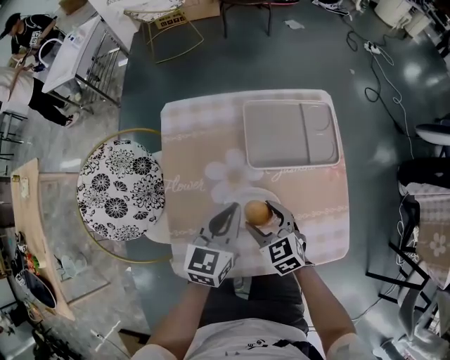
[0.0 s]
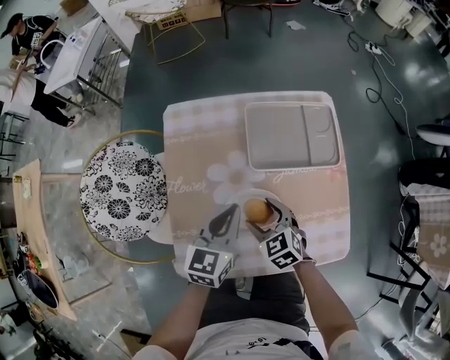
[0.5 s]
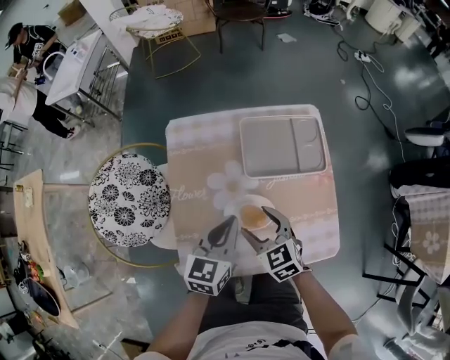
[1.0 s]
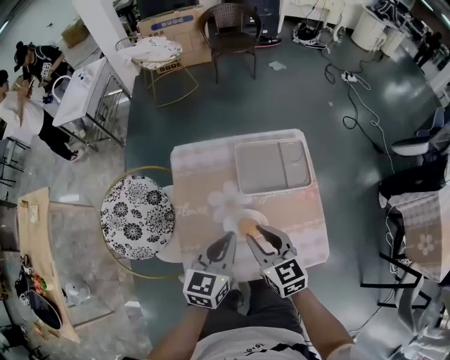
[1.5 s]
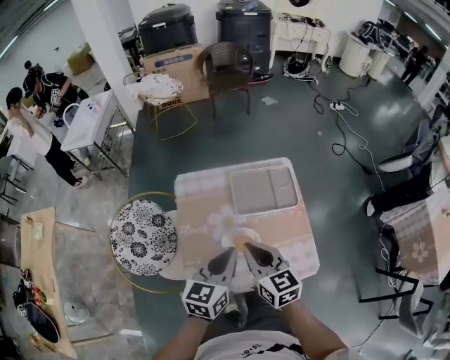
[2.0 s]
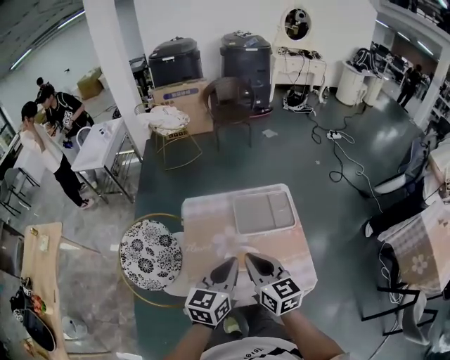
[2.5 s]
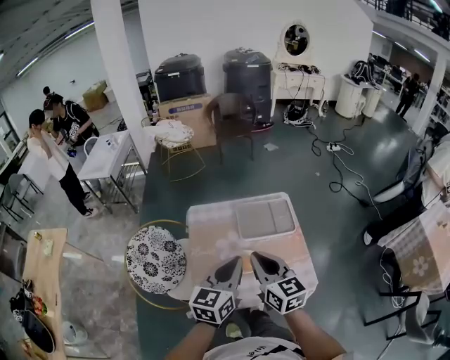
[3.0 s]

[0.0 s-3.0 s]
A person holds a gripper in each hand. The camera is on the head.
0.0 to 1.5 s: The right gripper is displaced upward by some 20 cm, changes its angle by some 20 degrees, and closes; the left gripper travels upward by about 10 cm.
1.5 to 3.0 s: Both grippers move upward, roughly 15 cm. The right gripper closes up.

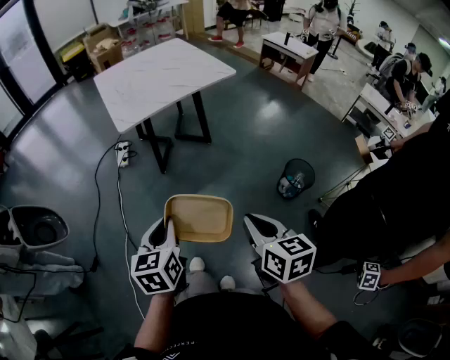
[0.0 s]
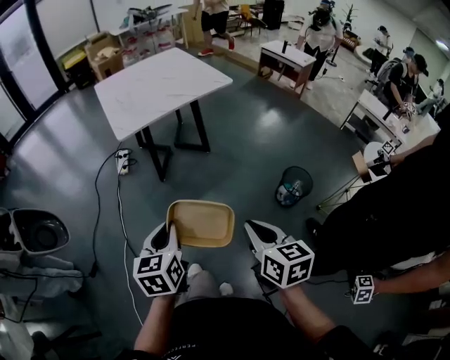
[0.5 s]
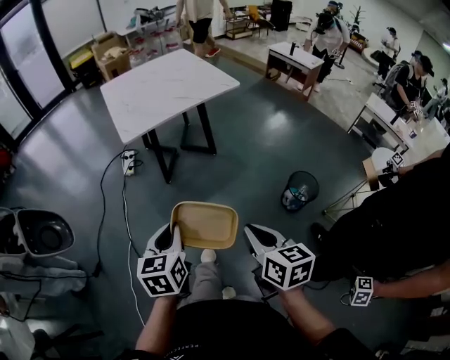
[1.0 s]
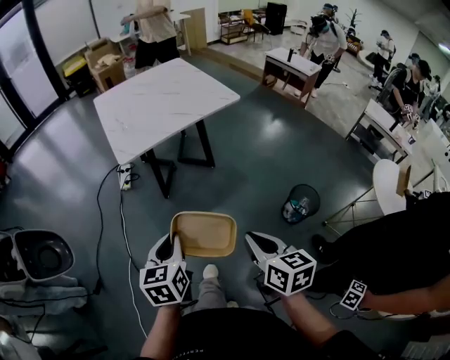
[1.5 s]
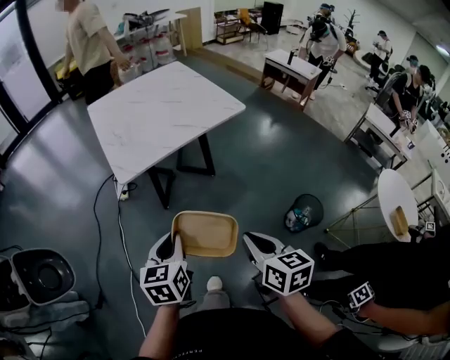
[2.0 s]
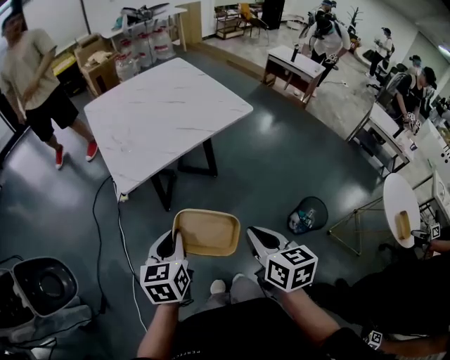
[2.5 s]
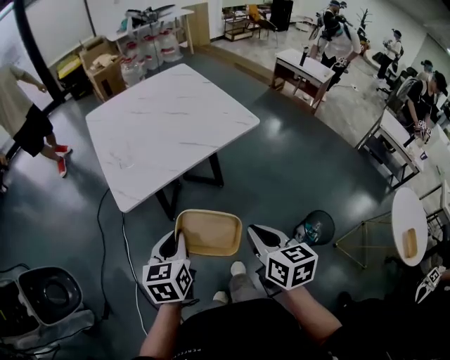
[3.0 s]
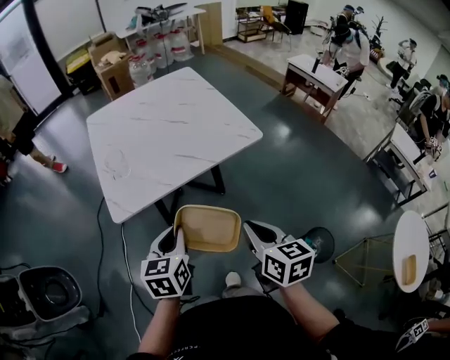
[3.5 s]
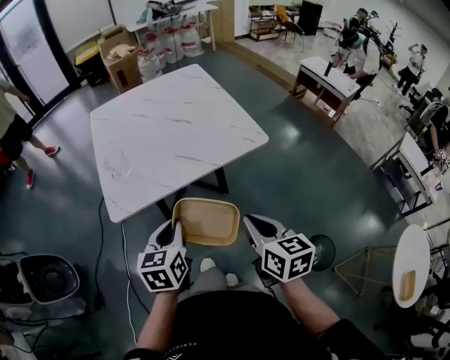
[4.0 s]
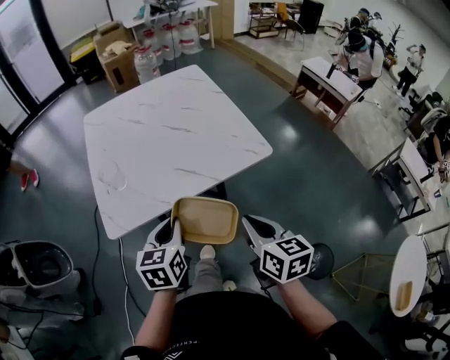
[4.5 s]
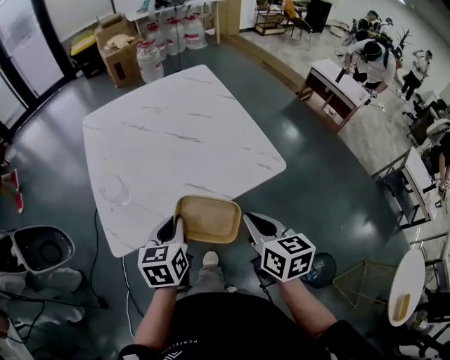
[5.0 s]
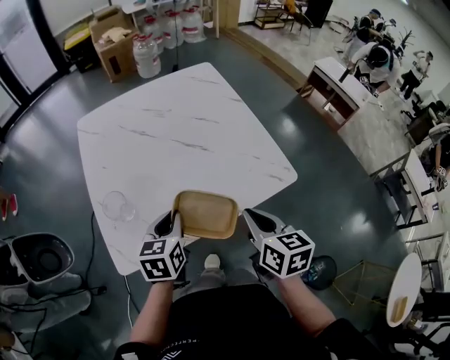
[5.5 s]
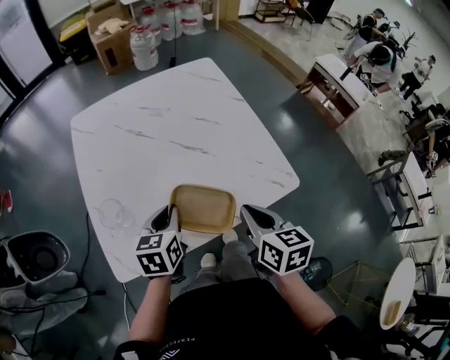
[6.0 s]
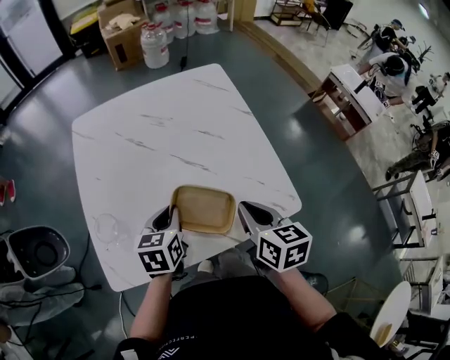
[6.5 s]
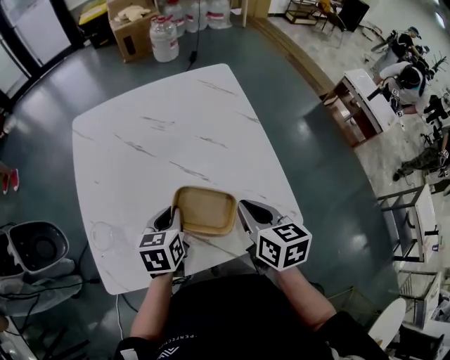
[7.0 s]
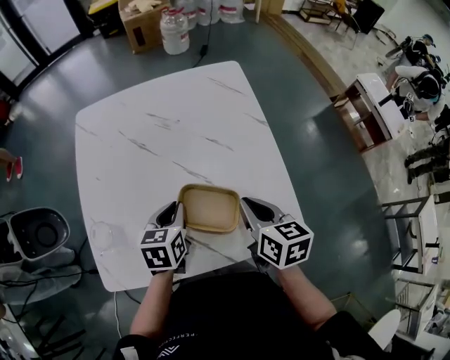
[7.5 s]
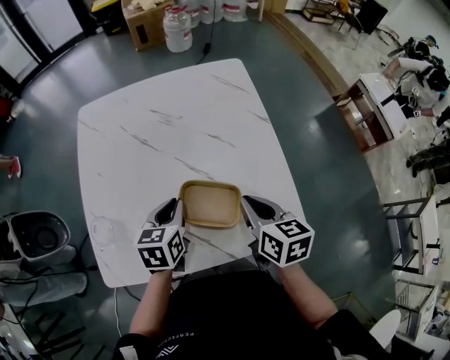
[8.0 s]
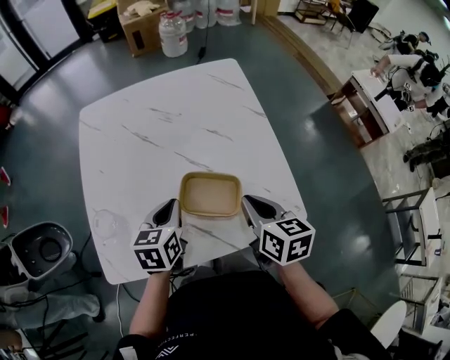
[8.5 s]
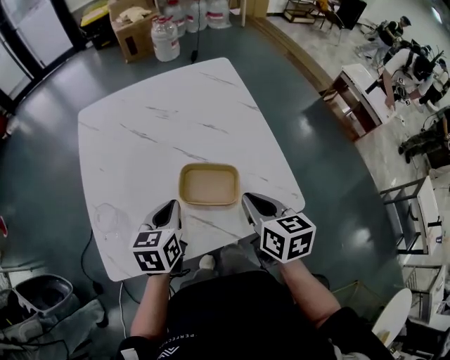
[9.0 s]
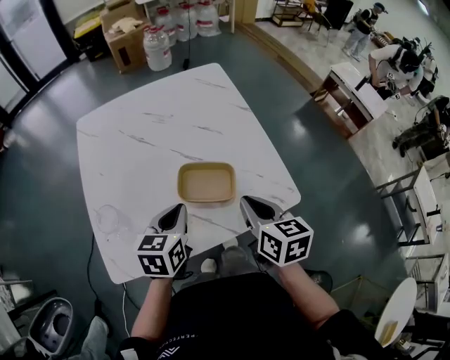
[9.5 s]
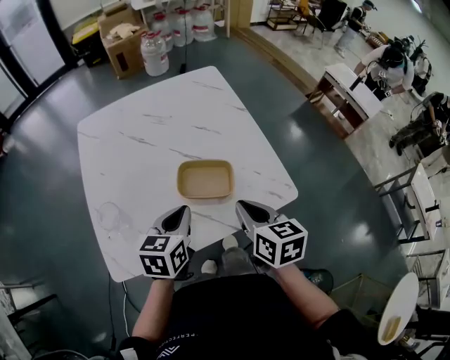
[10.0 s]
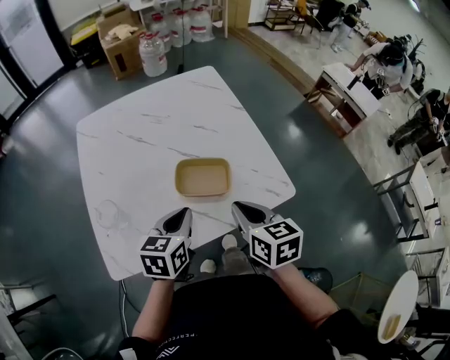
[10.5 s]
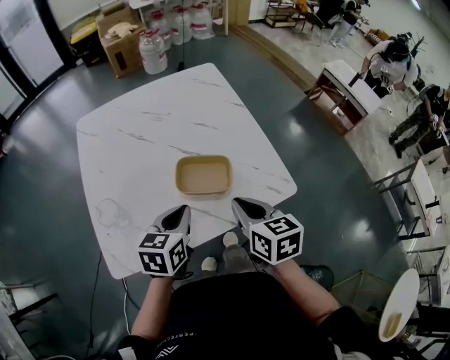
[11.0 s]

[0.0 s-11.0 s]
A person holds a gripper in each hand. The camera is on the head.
0.0 to 2.0 s: The grippers both shift forward by roughly 20 cm.
2.0 to 3.5 s: The two grippers go some 25 cm forward.
3.5 to 5.5 s: The two grippers go approximately 30 cm forward.
5.5 to 7.5 s: The two grippers go roughly 20 cm forward.
7.5 to 9.0 s: The two grippers go roughly 5 cm backward.
9.0 to 11.0 s: The two grippers go roughly 5 cm backward.

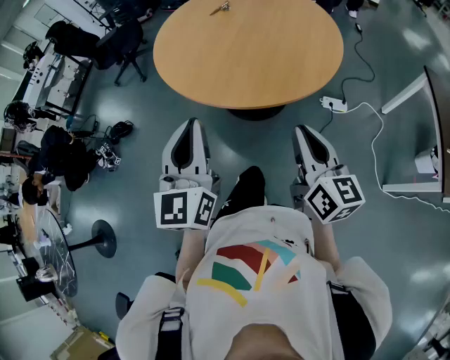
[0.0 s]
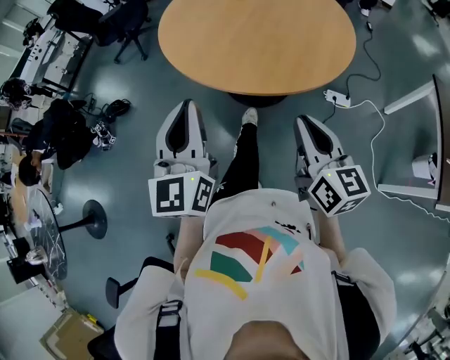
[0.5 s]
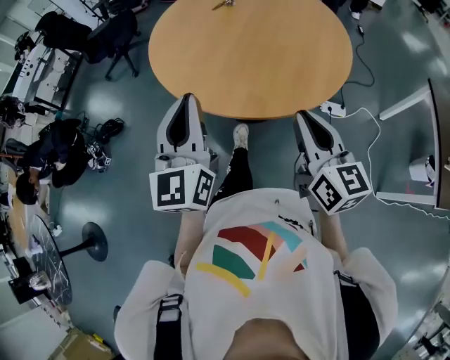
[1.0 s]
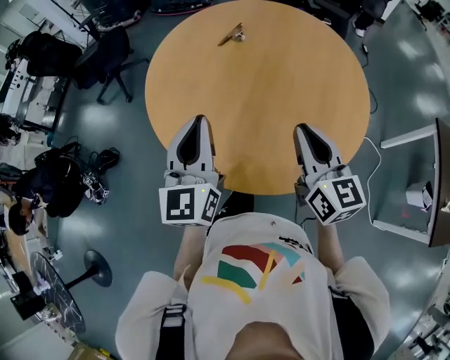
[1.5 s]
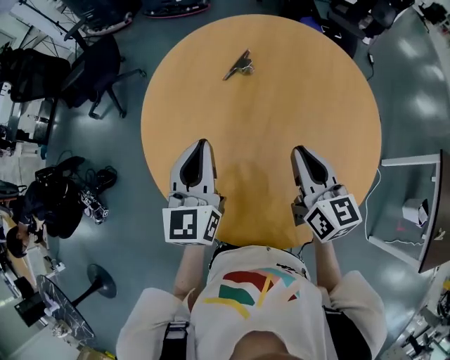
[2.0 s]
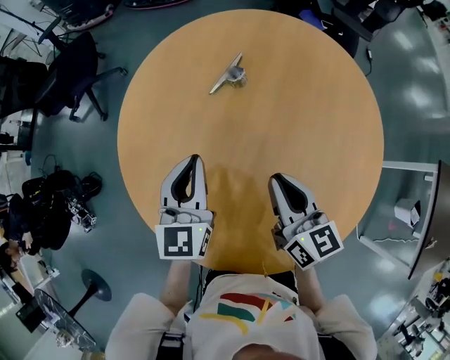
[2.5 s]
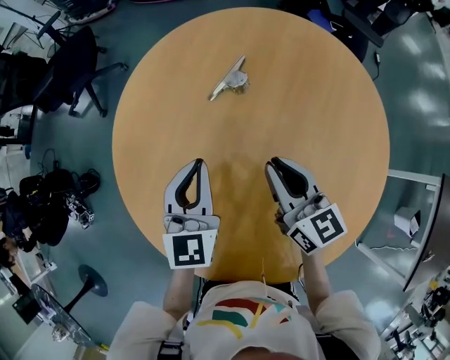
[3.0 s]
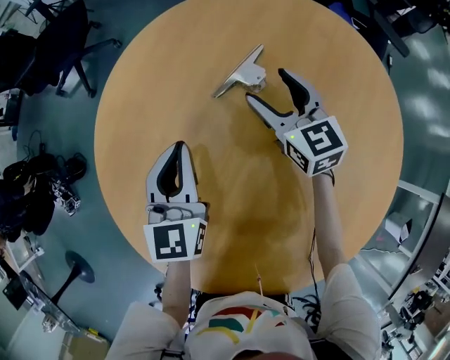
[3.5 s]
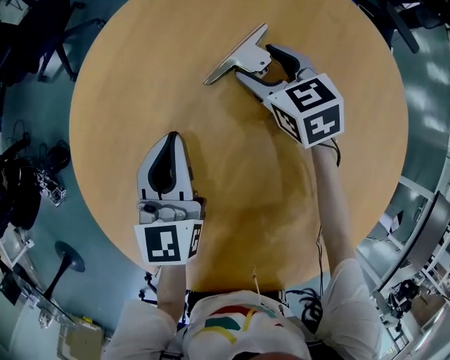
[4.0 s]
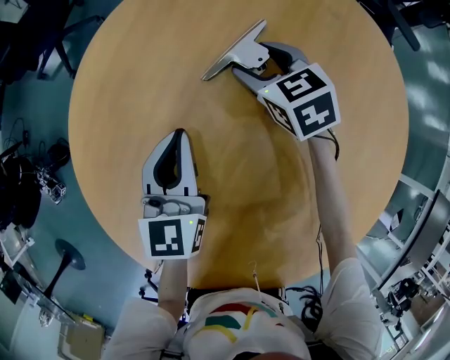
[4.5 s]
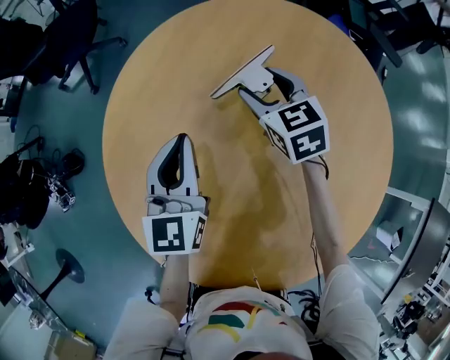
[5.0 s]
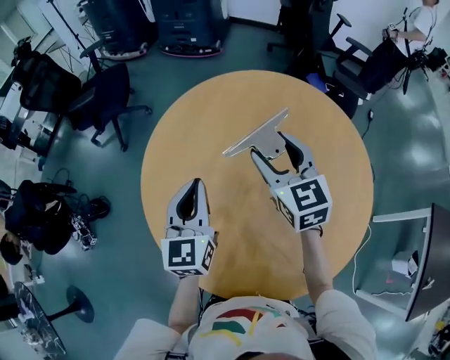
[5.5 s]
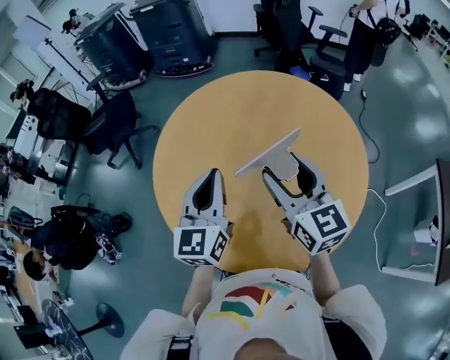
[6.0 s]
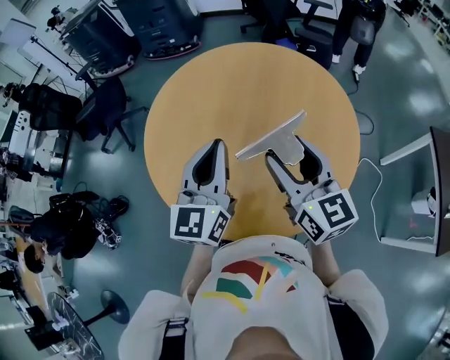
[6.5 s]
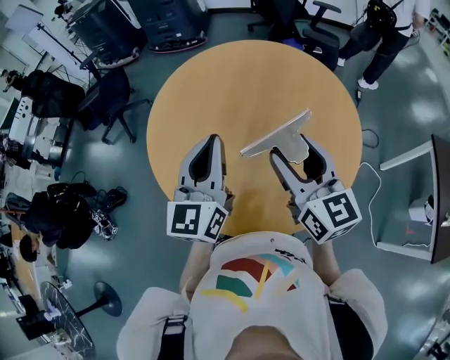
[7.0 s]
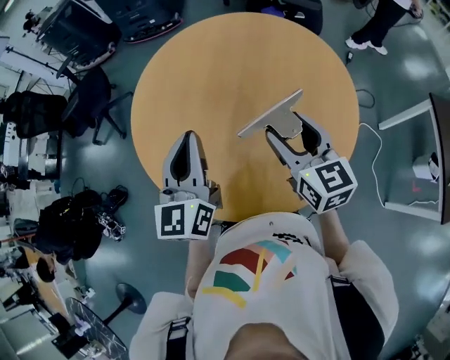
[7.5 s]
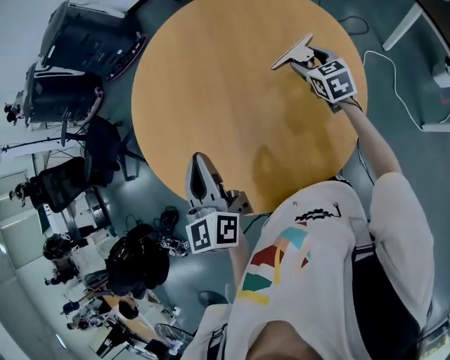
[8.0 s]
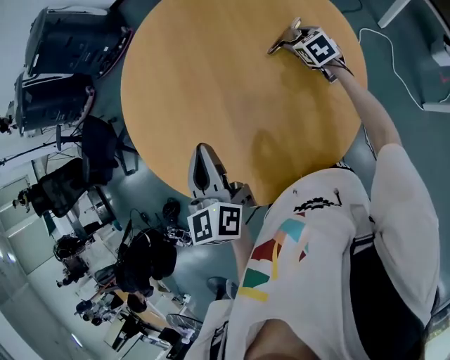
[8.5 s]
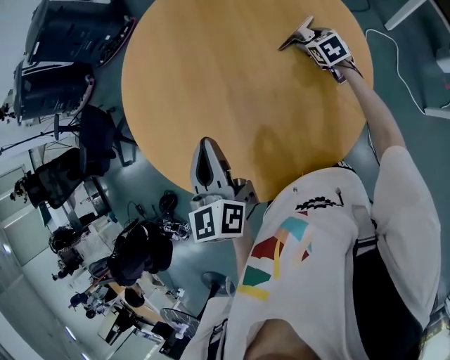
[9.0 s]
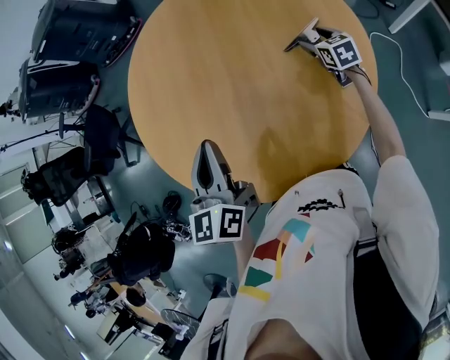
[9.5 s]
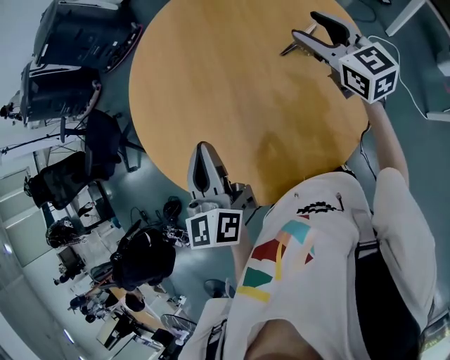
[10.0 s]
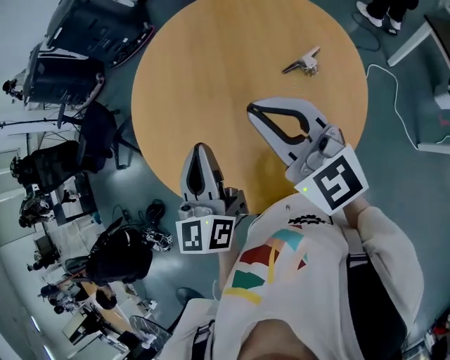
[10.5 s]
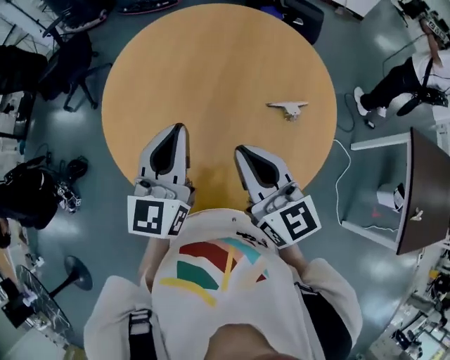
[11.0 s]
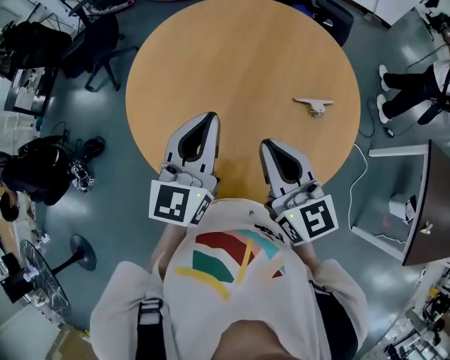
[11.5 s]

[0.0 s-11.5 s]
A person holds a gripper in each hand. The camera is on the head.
0.0 to 2.0 s: The two grippers travel together, forward, some 60 cm.
2.0 to 4.0 s: Both grippers travel together forward and downward, some 40 cm. The right gripper swivels roughly 40 degrees, and opens up.
4.0 to 6.0 s: The right gripper shifts about 60 cm backward and upward, and points its fingers roughly 40 degrees further upward. The left gripper goes some 40 cm upward and backward.
6.0 to 7.5 s: The right gripper heads downward, covering some 10 cm.
7.5 to 9.5 s: The right gripper goes approximately 40 cm downward, to the right and forward, and rotates roughly 30 degrees, while the left gripper goes approximately 10 cm to the right and downward.
9.5 to 11.5 s: The left gripper moves upward and backward, roughly 10 cm. The right gripper travels upward, to the left and backward by roughly 50 cm, tilts its fingers some 30 degrees upward, and closes up.

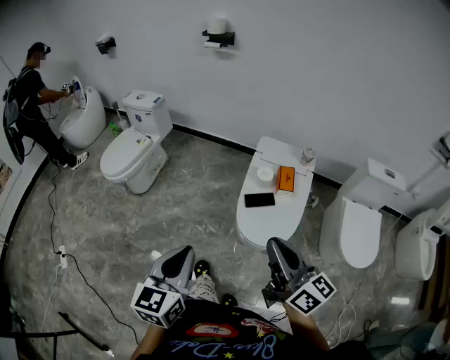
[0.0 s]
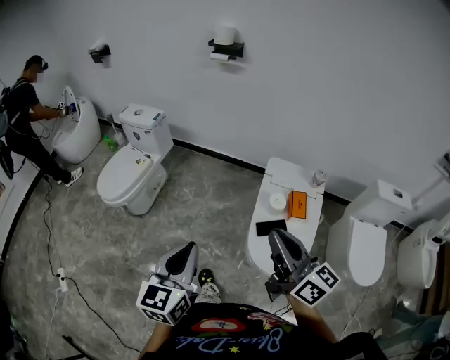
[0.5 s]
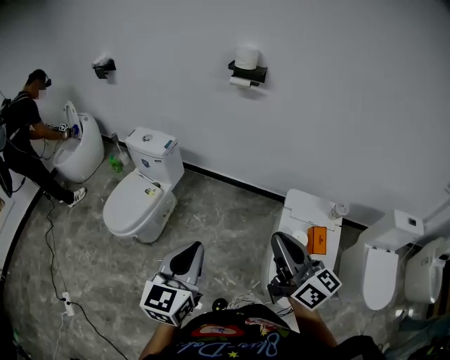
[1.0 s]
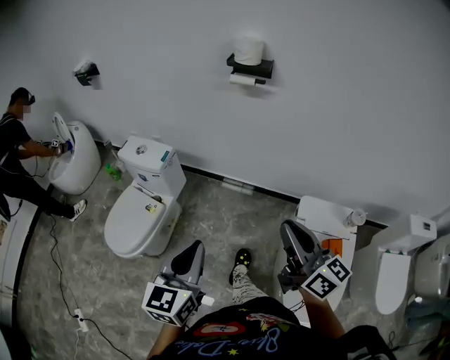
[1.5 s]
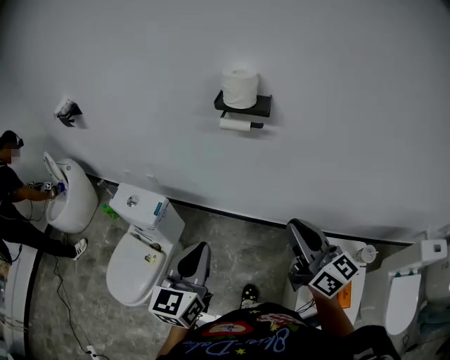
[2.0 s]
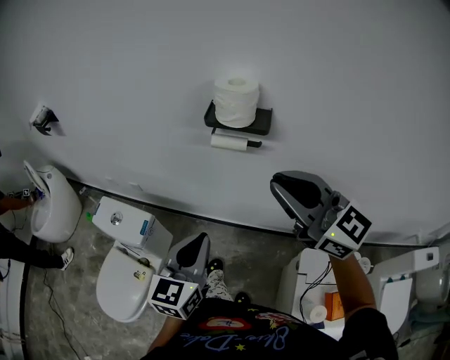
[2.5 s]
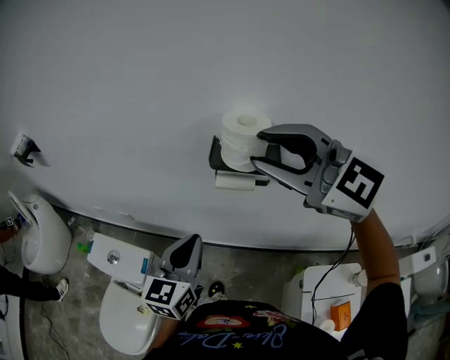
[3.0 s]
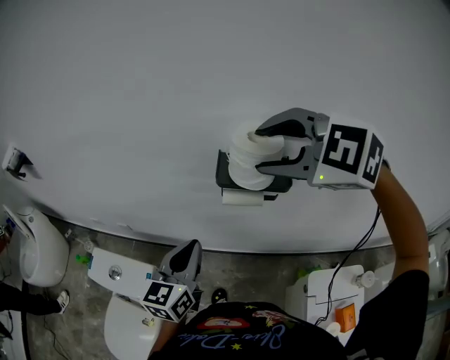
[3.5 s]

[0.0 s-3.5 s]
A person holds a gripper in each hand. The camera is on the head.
0.0 to 2.0 s: The pair of grippers is taken forward, roughly 70 cm.
2.0 to 3.5 s: The left gripper goes approximately 30 cm forward; the right gripper travels forward and upward by about 40 cm, angles its fingers downward, by about 50 degrees, and opens up.
